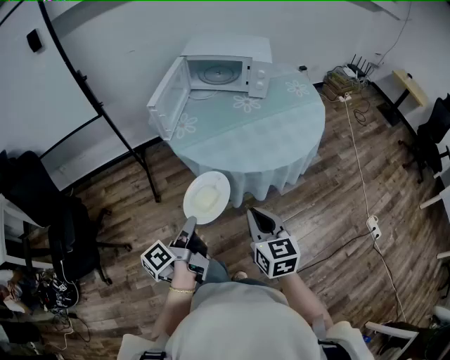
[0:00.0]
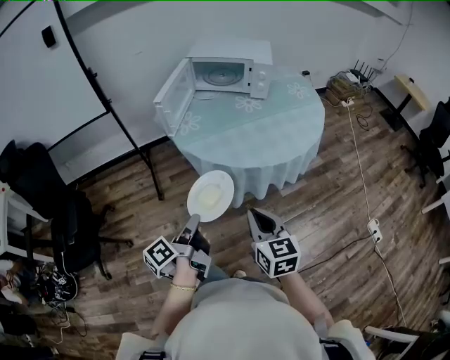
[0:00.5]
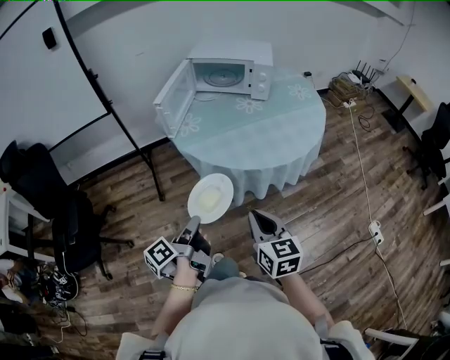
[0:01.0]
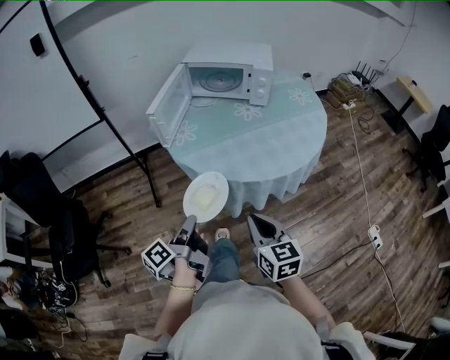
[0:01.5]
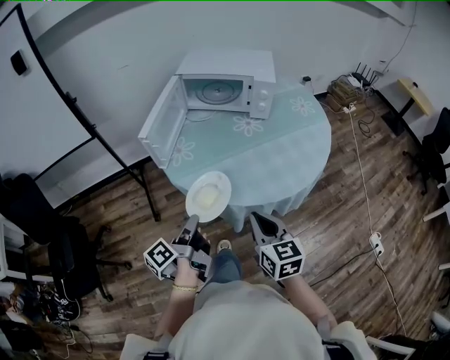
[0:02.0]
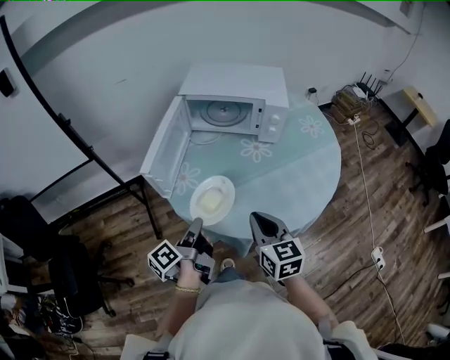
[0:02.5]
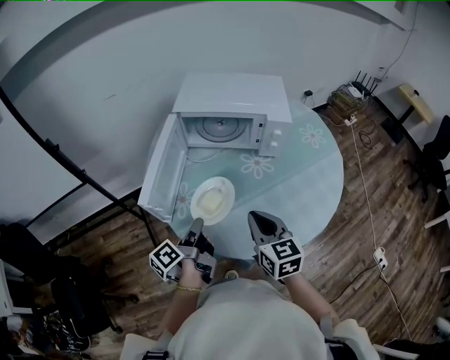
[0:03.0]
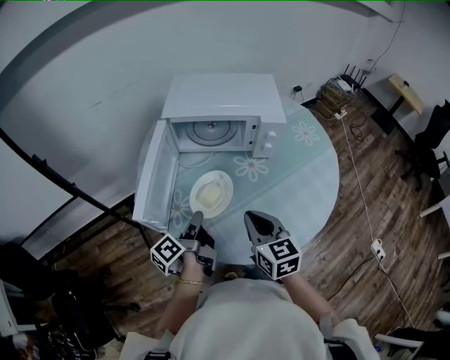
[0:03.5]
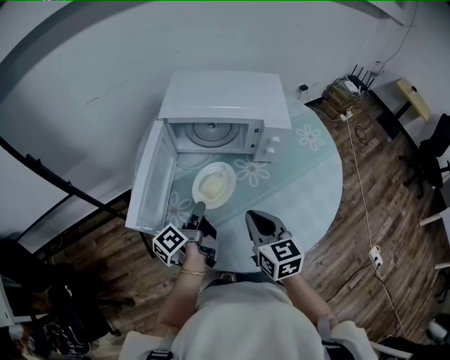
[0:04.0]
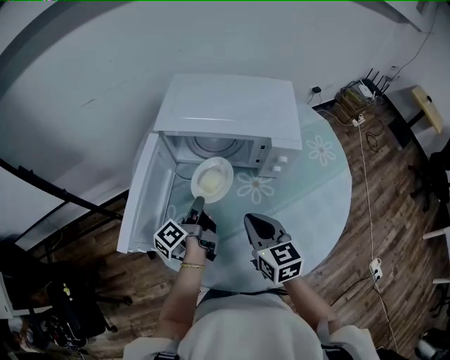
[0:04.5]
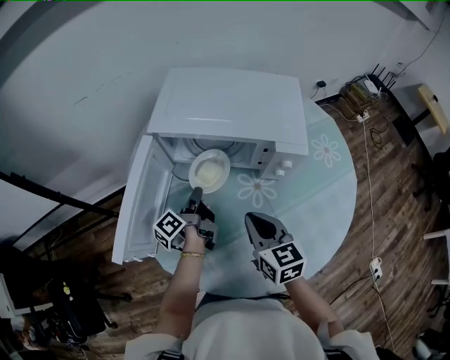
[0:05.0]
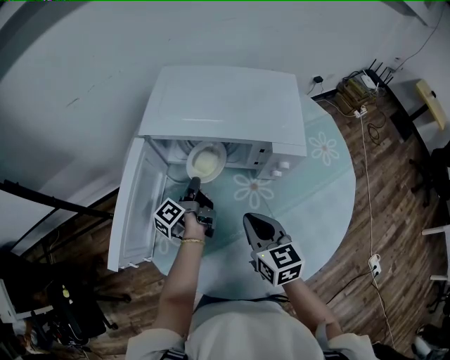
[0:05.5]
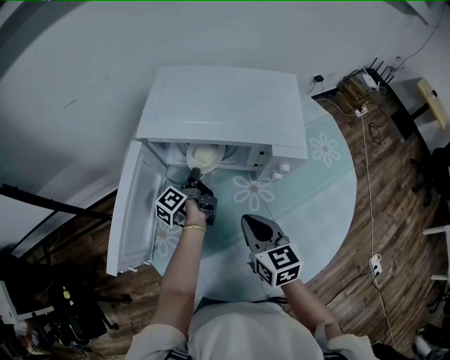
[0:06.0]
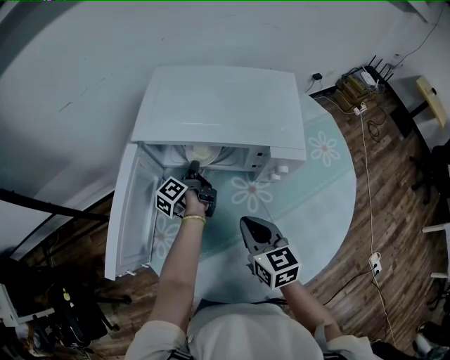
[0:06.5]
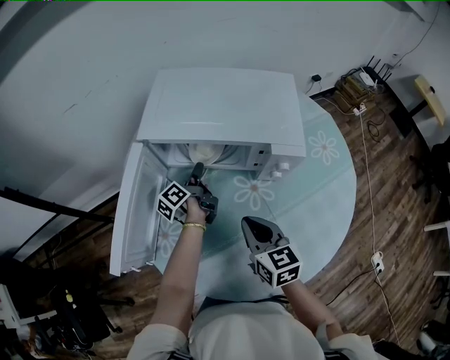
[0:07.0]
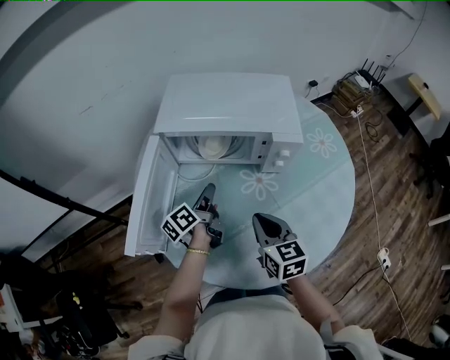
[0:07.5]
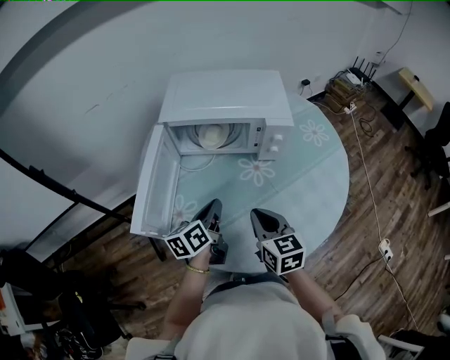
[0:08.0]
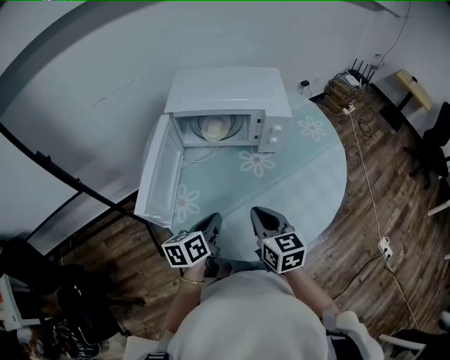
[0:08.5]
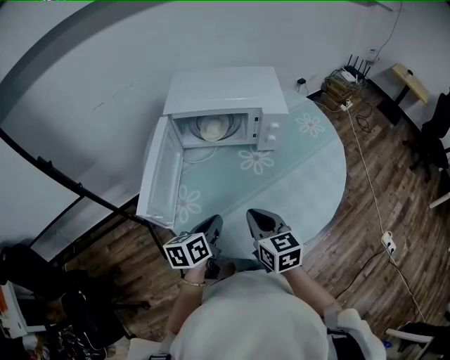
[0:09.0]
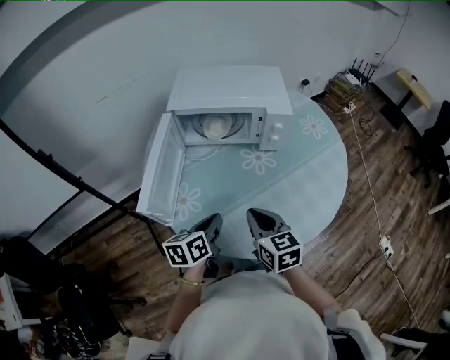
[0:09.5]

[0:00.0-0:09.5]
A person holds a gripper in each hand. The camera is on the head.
0:00.0 to 0:02.0: The right gripper ends up some 15 cm from where it was.
0:02.0 to 0:04.0: The right gripper shifts by roughly 30 cm.
0:04.0 to 0:05.5: The right gripper shifts by about 15 cm.
0:05.5 to 0:07.5: The right gripper changes place by some 5 cm.
0:07.5 to 0:09.5: The right gripper shifts by about 10 cm.

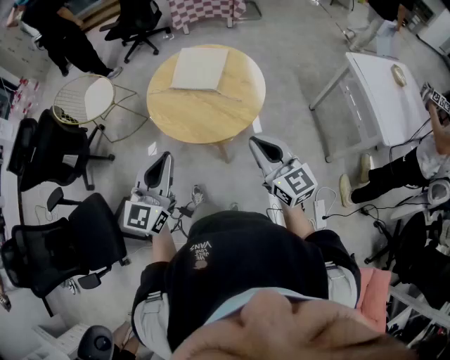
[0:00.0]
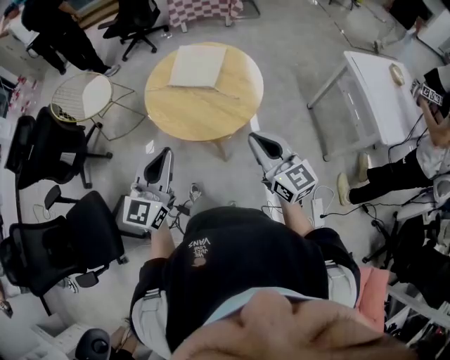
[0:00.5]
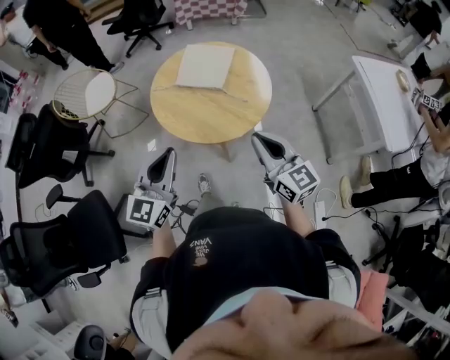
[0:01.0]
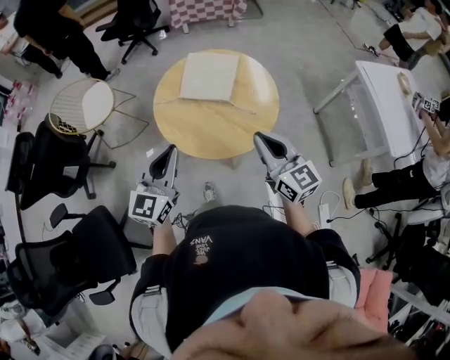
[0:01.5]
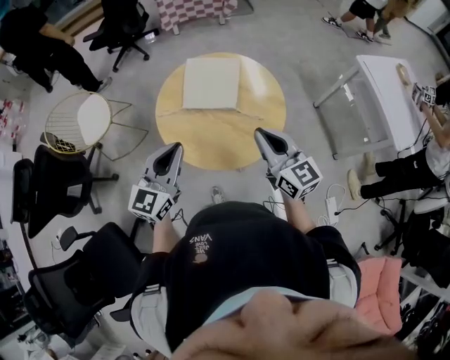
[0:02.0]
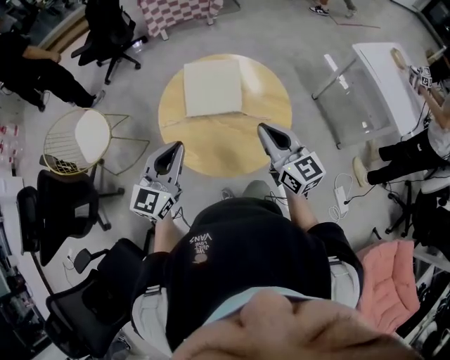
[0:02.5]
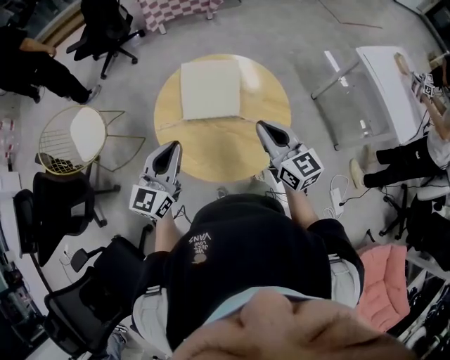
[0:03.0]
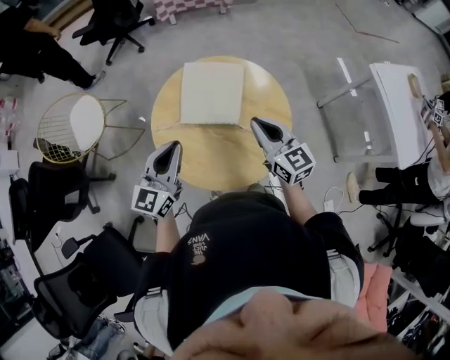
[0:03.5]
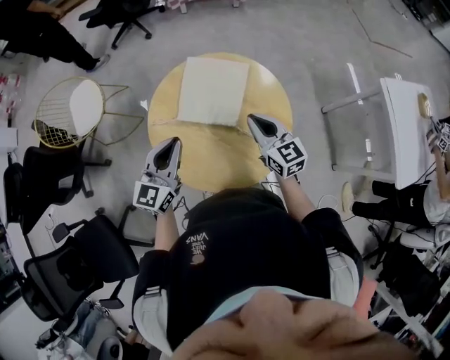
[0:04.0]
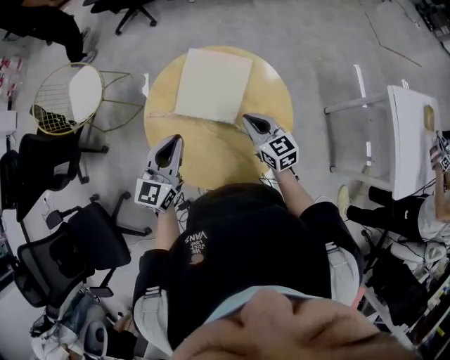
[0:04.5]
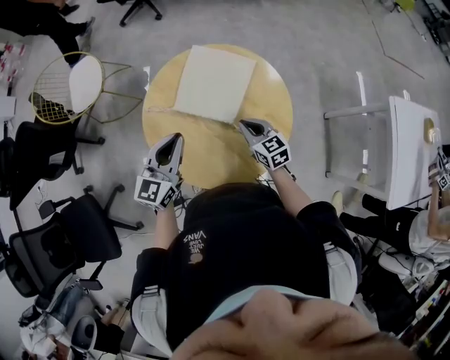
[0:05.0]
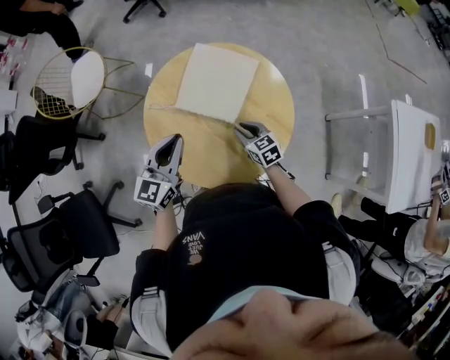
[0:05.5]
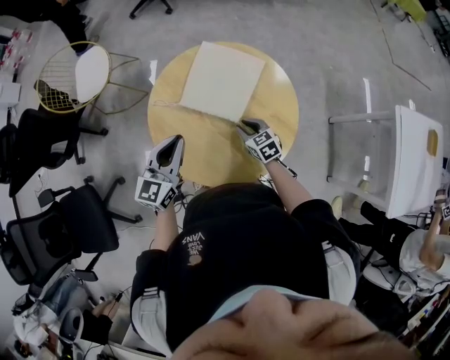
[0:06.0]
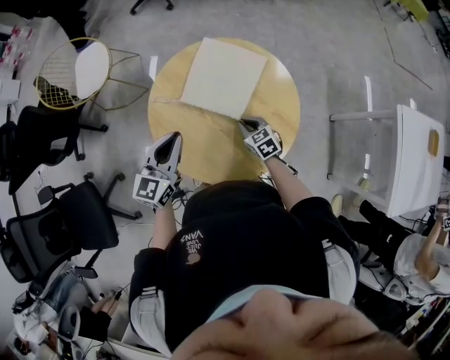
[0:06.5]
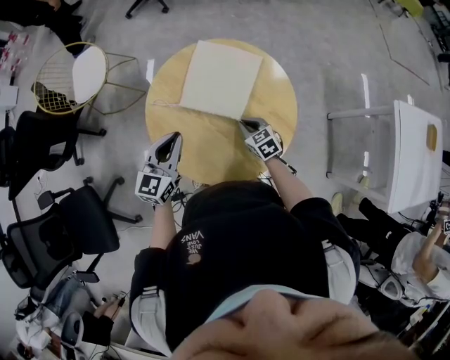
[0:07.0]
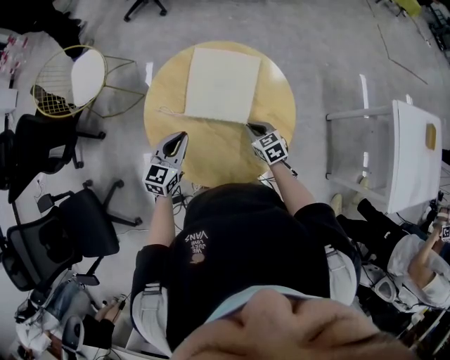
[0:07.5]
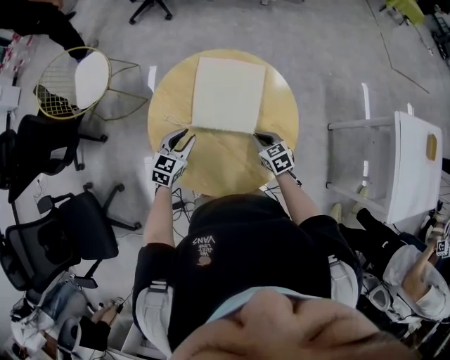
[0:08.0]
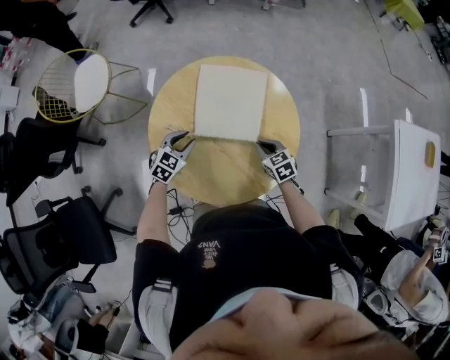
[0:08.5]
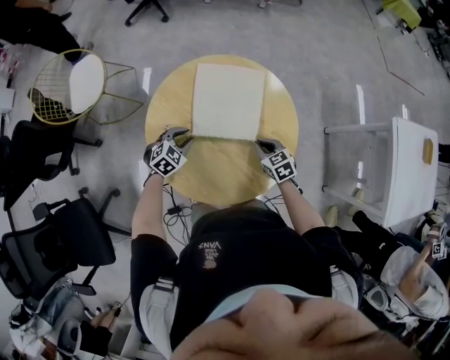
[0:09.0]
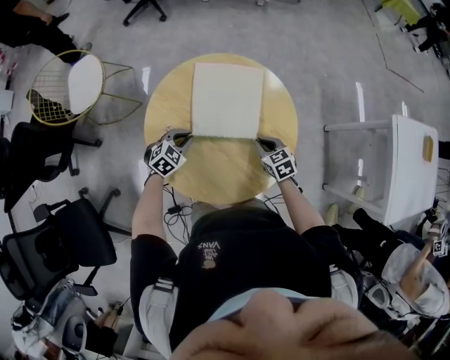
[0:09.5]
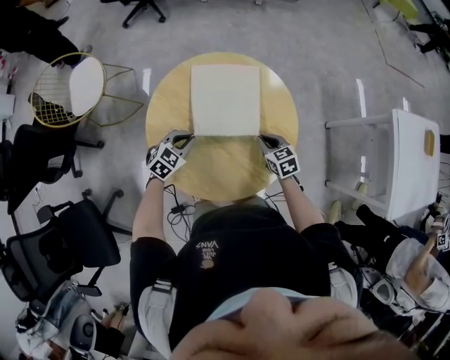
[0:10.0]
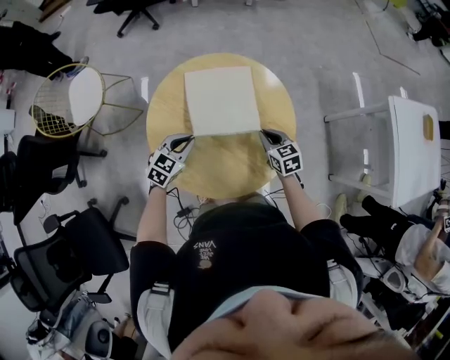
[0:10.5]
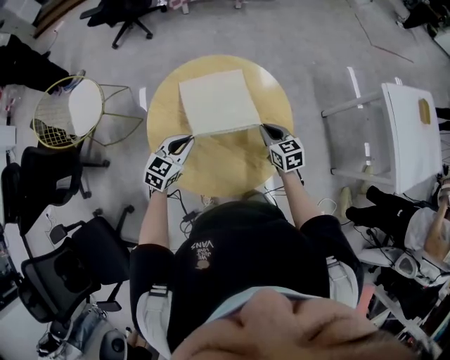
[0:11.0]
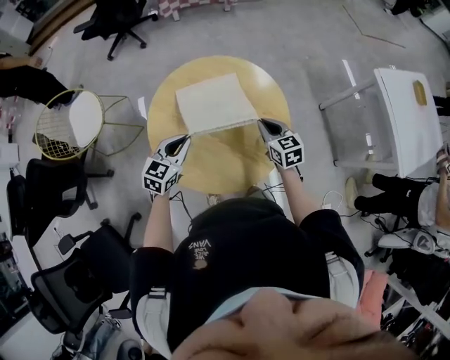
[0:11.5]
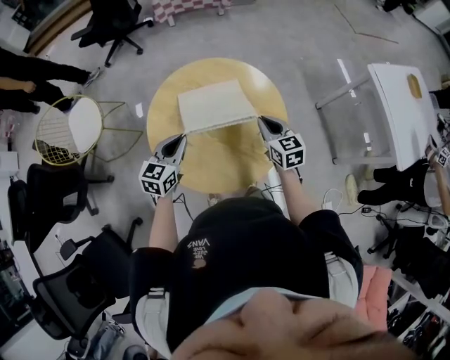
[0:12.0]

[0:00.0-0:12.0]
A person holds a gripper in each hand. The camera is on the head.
0:00.0 to 0:02.0: The grippers both shift forward and to the left by about 20 cm.
0:02.0 to 0:04.0: Both grippers move forward and downward, some 20 cm.
0:04.0 to 0:06.0: The right gripper shifts roughly 20 cm downward, rotates approximately 30 degrees, and opens. The left gripper shifts by about 5 cm.
0:06.0 to 0:08.0: The right gripper goes roughly 5 cm to the right, and closes up. The left gripper moves downward, some 15 cm, changes its angle by roughly 20 degrees, and opens.
0:08.0 to 0:10.0: The left gripper changes its angle by some 20 degrees.
0:10.0 to 0:12.0: The grippers both shift upward by some 15 cm. The left gripper turns by roughly 30 degrees. The right gripper swivels some 30 degrees.

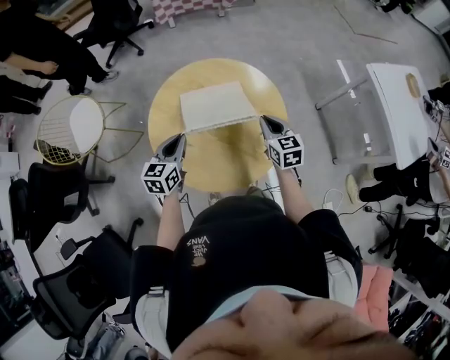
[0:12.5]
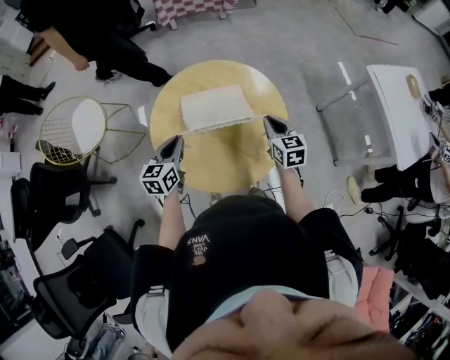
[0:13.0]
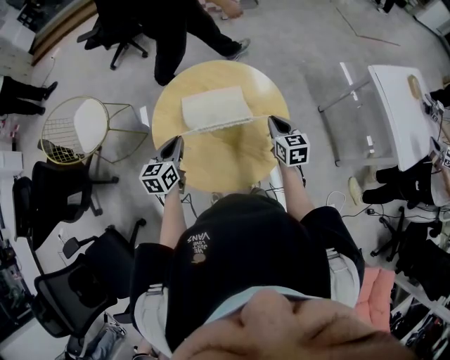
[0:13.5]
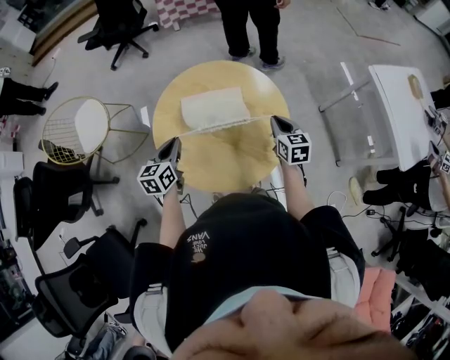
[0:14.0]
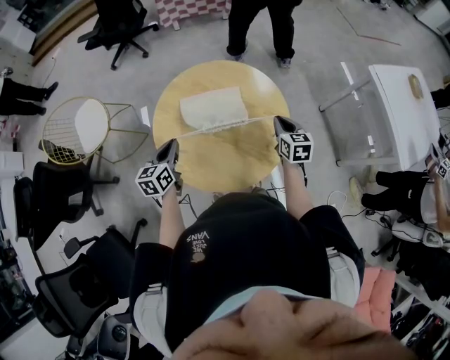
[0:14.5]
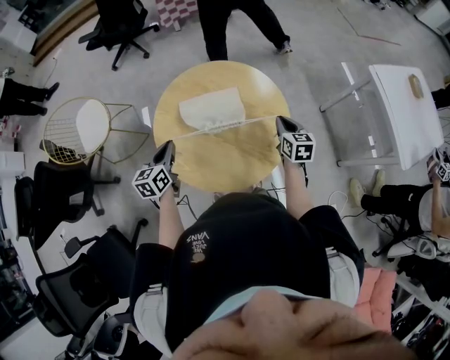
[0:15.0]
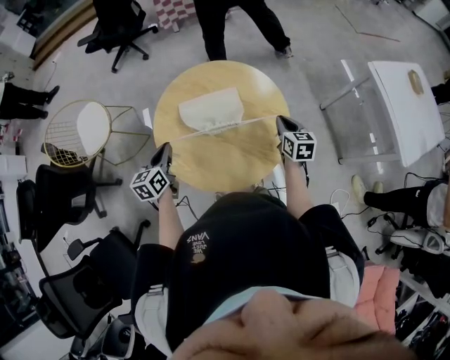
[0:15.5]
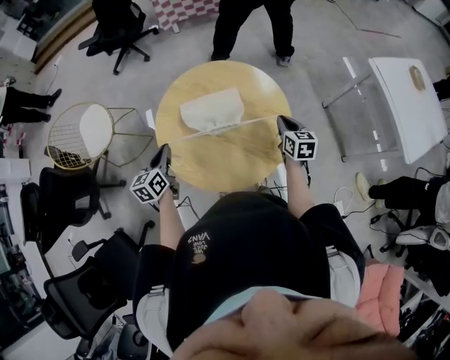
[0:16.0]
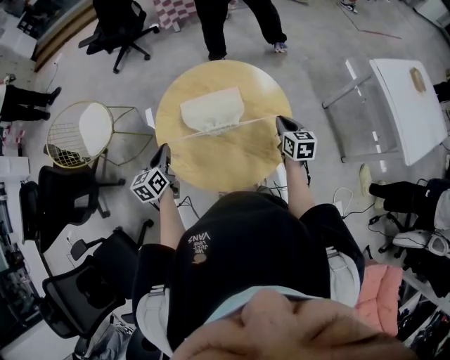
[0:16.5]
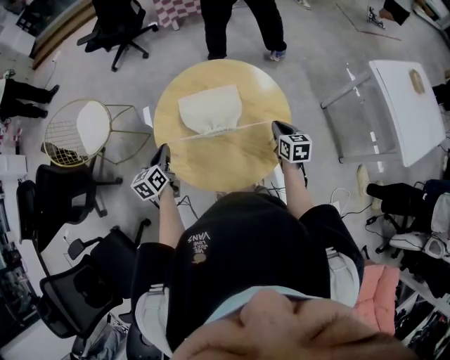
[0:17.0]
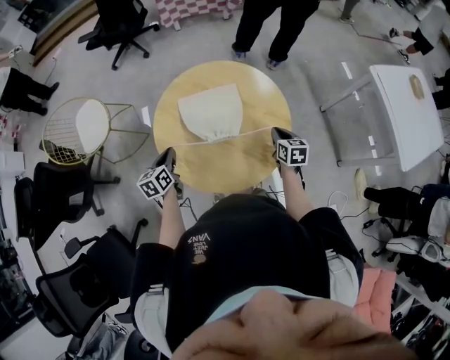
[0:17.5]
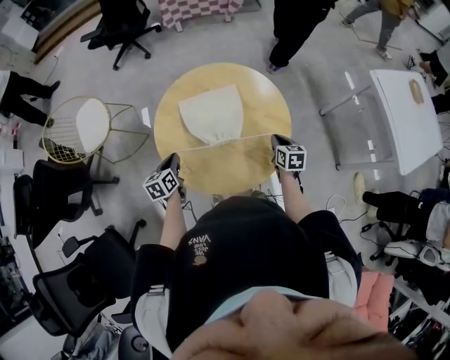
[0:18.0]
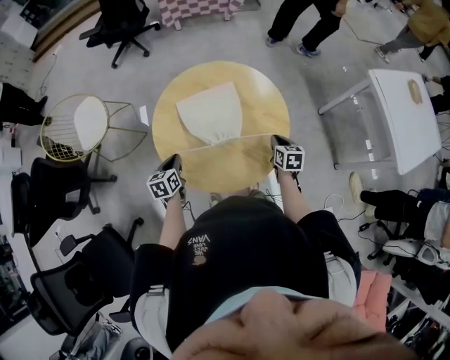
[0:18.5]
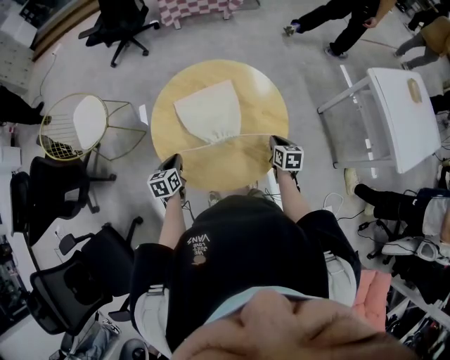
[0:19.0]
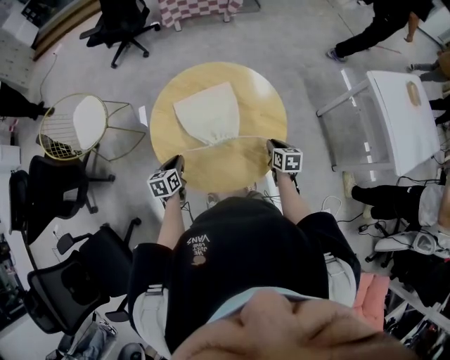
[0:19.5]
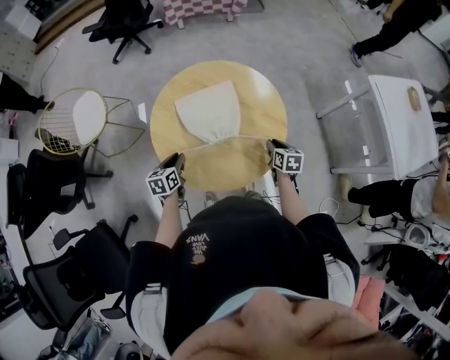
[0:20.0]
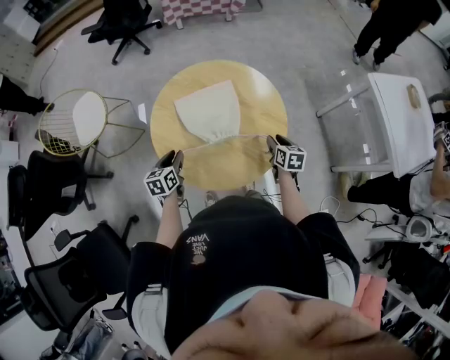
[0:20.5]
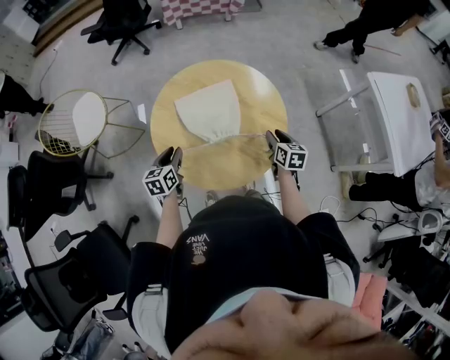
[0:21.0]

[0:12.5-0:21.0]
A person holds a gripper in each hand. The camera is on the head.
0:12.5 to 0:14.5: The right gripper ends up some 5 cm from where it was.
0:14.5 to 0:16.5: The grippers move only a little.
0:16.5 to 0:19.0: The two grippers go some 10 cm downward.
0:19.0 to 0:21.0: The left gripper opens. The right gripper opens.
